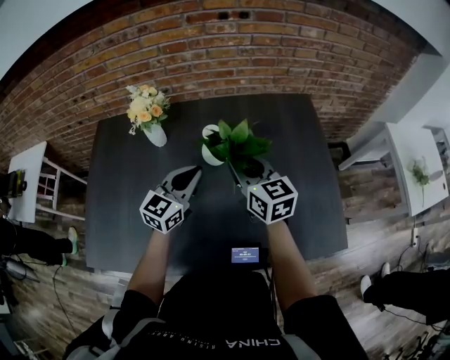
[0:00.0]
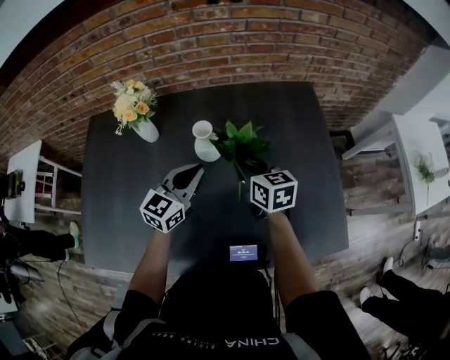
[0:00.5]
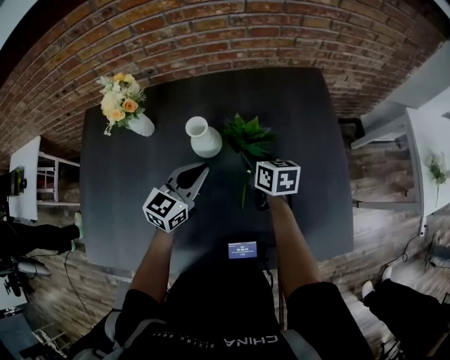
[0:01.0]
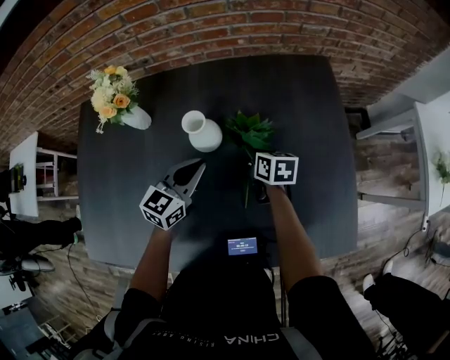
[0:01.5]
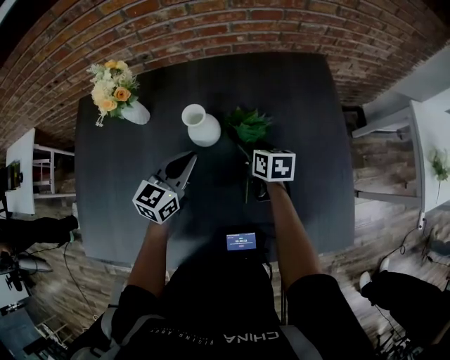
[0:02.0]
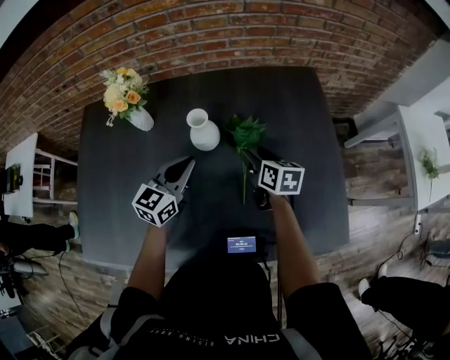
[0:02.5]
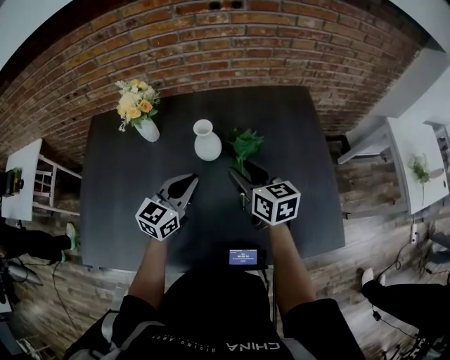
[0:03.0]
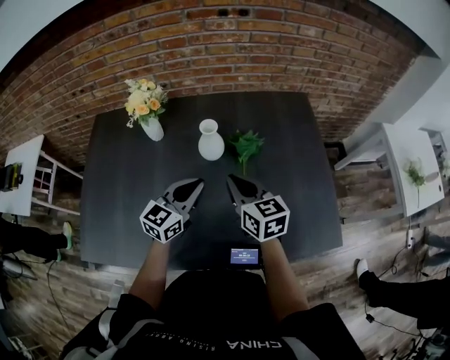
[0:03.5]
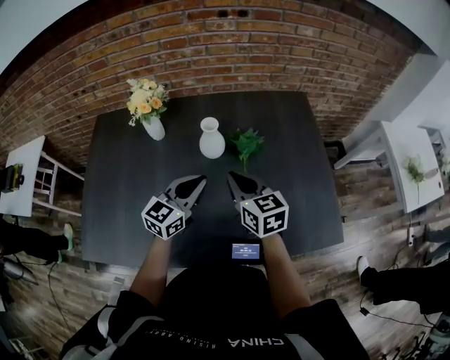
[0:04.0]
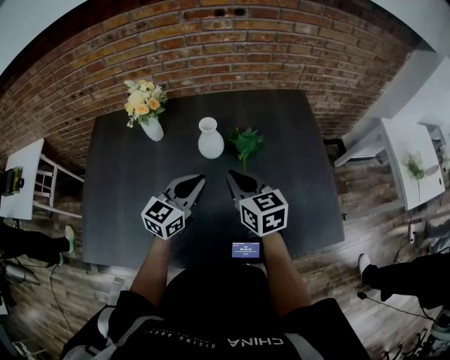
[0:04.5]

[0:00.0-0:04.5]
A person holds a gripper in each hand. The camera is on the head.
0.0 to 2.0 s: The left gripper heads downward and forward, covering roughly 10 cm; the right gripper travels downward by roughly 25 cm, rotates approximately 40 degrees, and opens up.
2.0 to 4.5 s: The right gripper travels upward and backward by roughly 25 cm, changes its angle by approximately 30 degrees, and closes up. The left gripper heads backward and upward, covering roughly 15 cm.

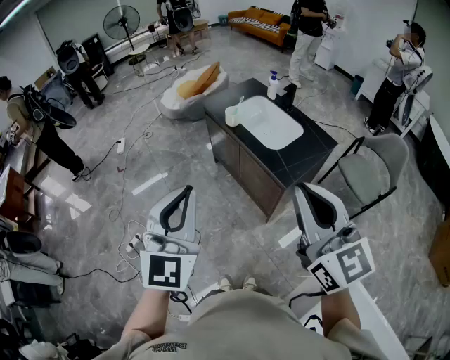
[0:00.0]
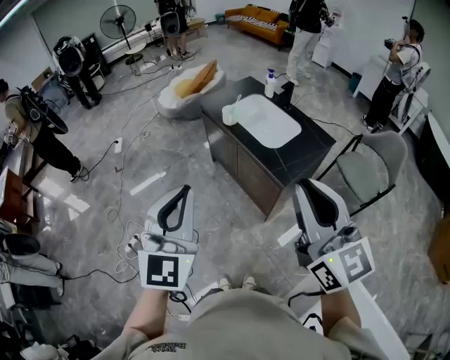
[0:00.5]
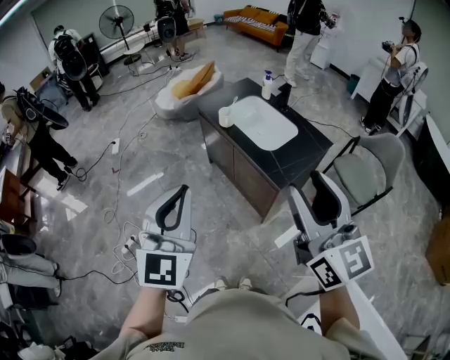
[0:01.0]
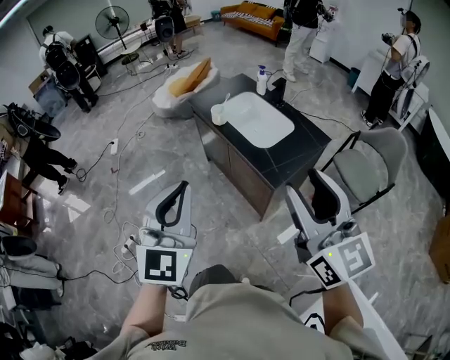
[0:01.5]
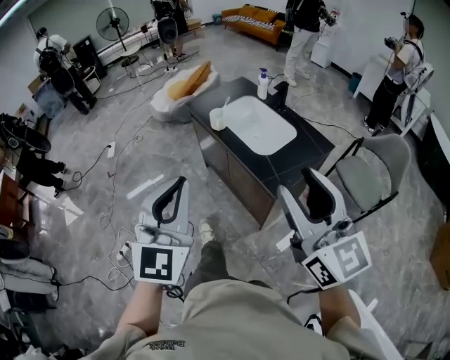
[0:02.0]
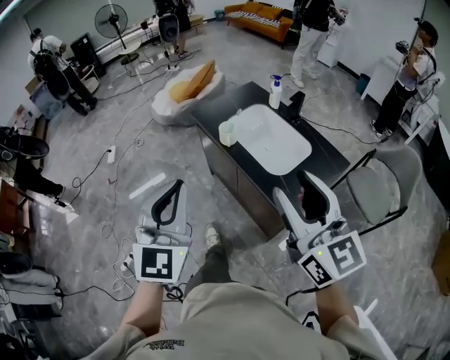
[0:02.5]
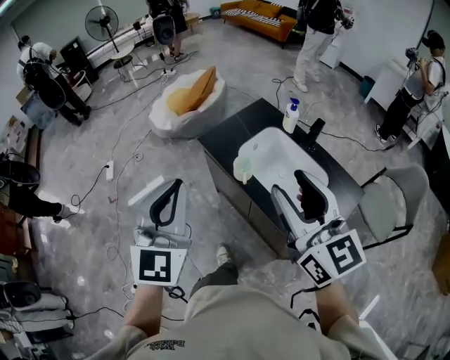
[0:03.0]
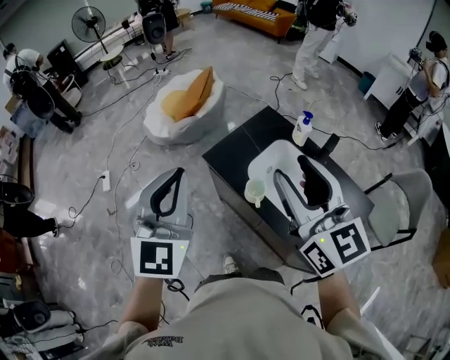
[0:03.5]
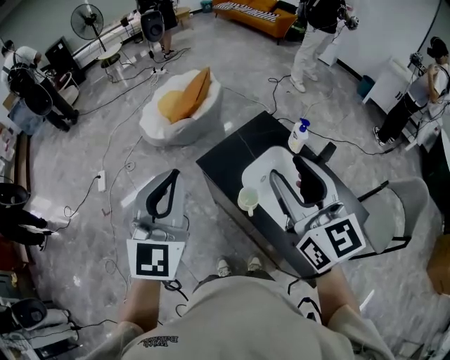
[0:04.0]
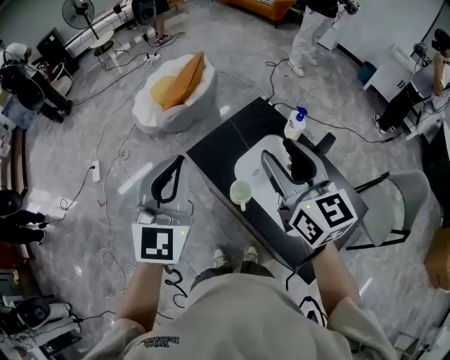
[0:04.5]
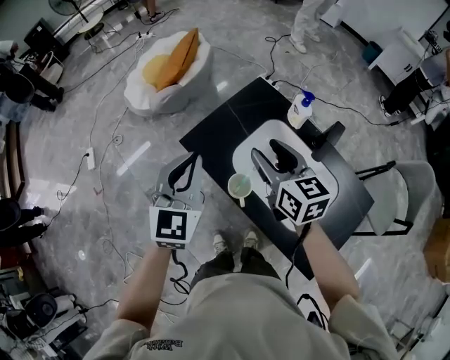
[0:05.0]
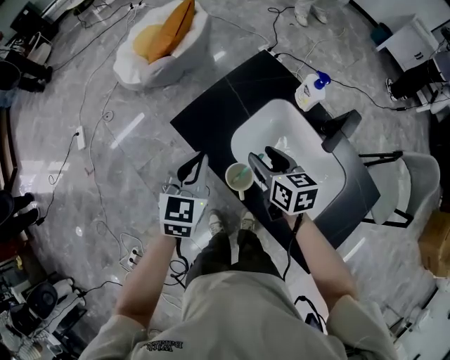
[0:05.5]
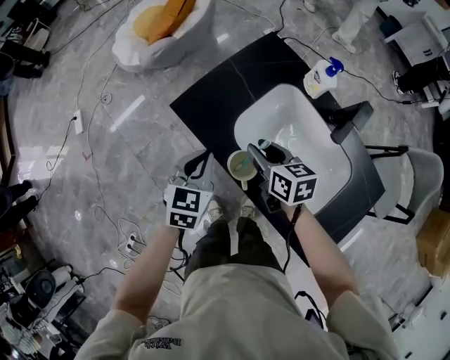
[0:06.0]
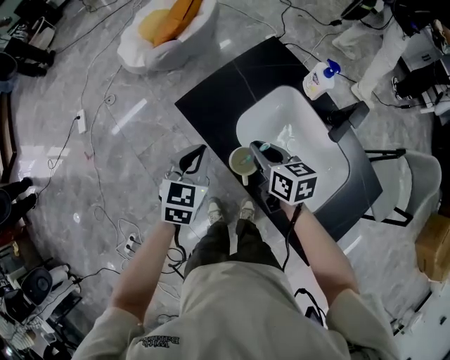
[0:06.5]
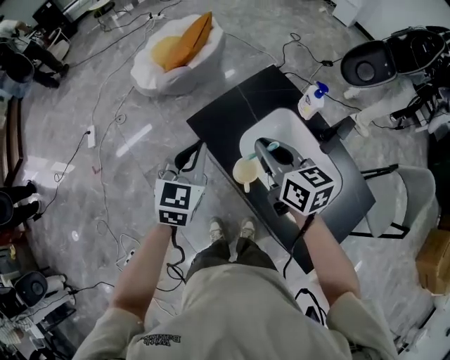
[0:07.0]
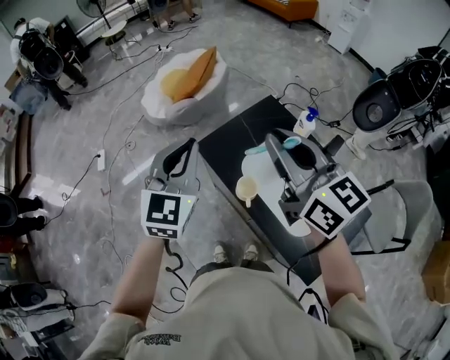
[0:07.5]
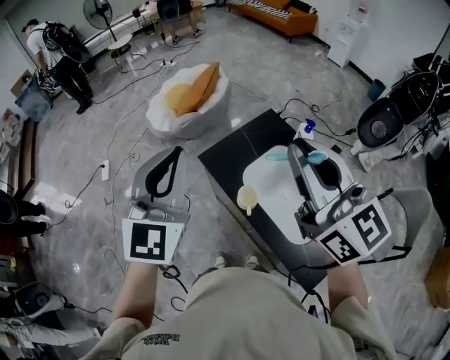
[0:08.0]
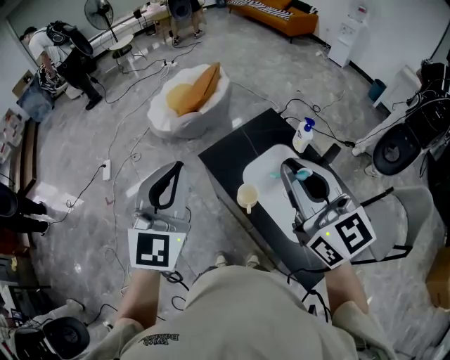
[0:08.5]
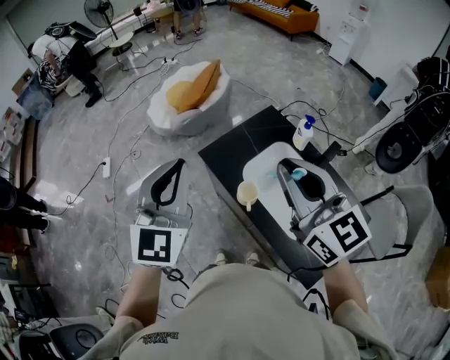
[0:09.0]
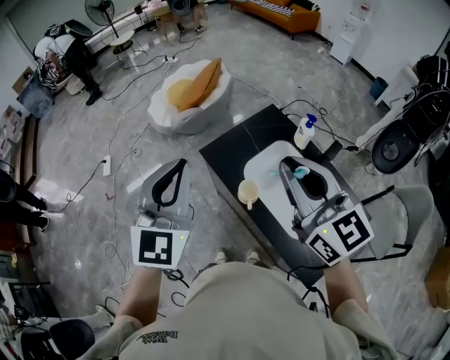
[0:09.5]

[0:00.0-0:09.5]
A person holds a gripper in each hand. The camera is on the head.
0.0 to 2.0 s: Both grippers travel together forward and to the right, roughly 10 cm. The right gripper opens up.
2.0 to 4.0 s: Both grippers are carried forward, about 50 cm.
4.0 to 5.5 s: The grippers both shift downward by some 35 cm. The left gripper turns by roughly 30 degrees. Meanwhile the right gripper points its fingers approximately 30 degrees further downward.
5.5 to 7.5 s: The right gripper heads upward, covering some 35 cm, angles its fingers upward, by roughly 30 degrees, and closes up. Meanwhile the left gripper travels upward by some 25 cm, and swivels some 20 degrees.
7.5 to 9.5 s: The right gripper shifts roughly 5 cm backward, and moves approximately 10 cm upward and comes back, while the left gripper is displaced backward and upward by approximately 10 cm.

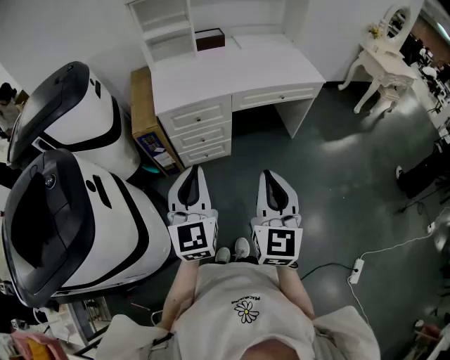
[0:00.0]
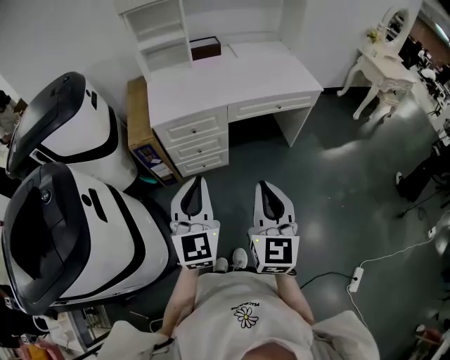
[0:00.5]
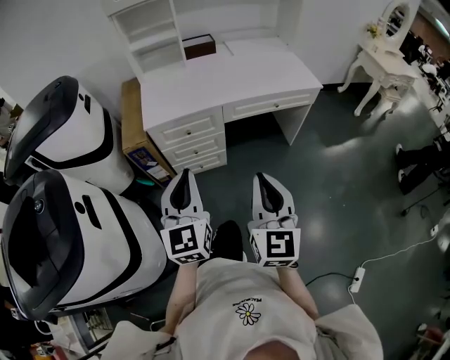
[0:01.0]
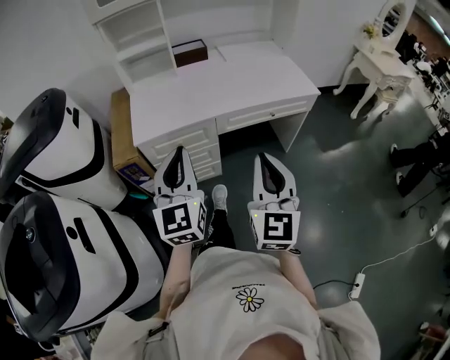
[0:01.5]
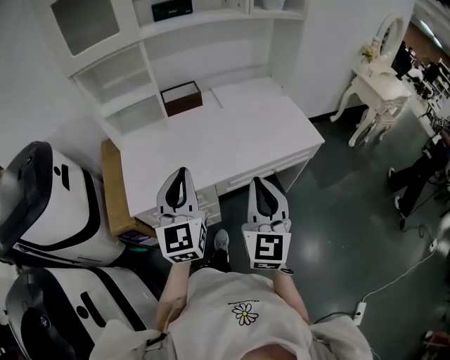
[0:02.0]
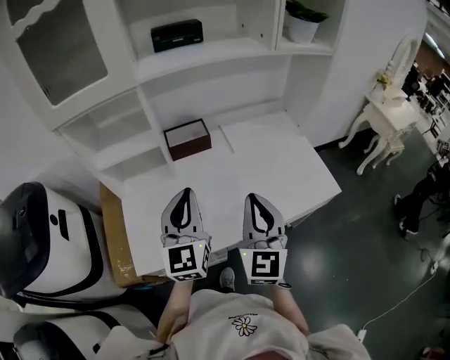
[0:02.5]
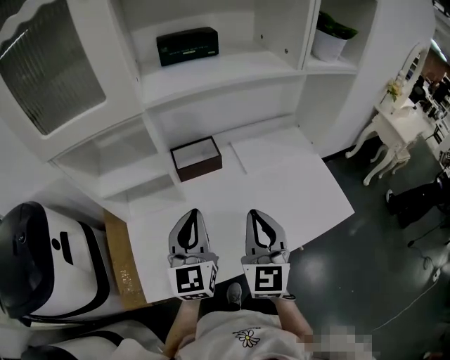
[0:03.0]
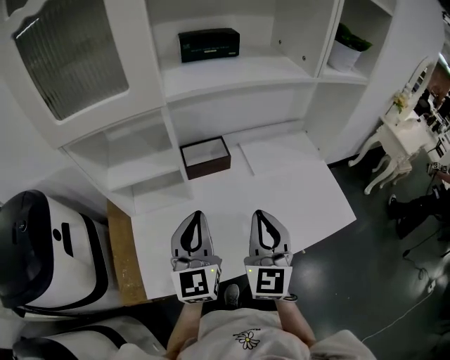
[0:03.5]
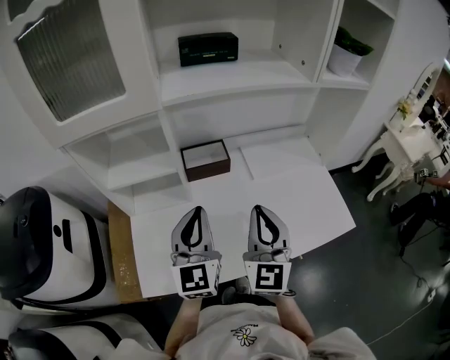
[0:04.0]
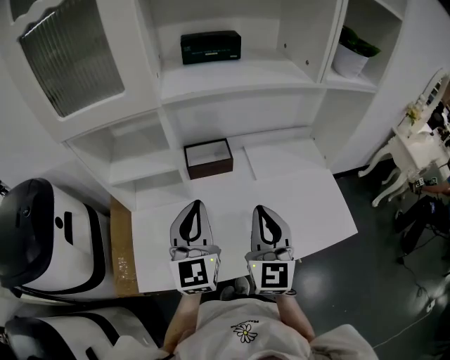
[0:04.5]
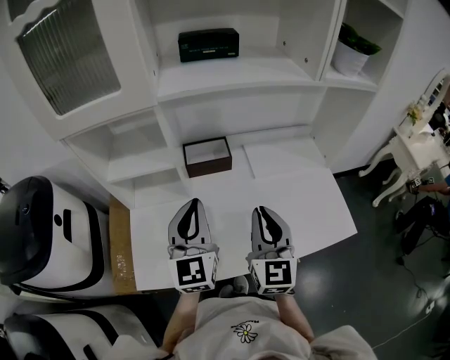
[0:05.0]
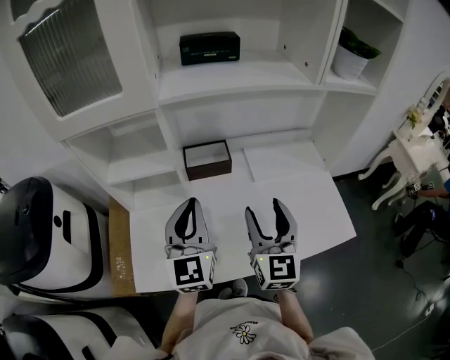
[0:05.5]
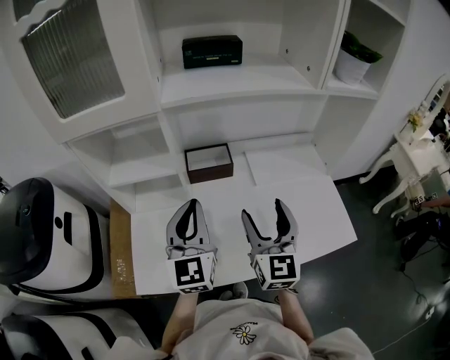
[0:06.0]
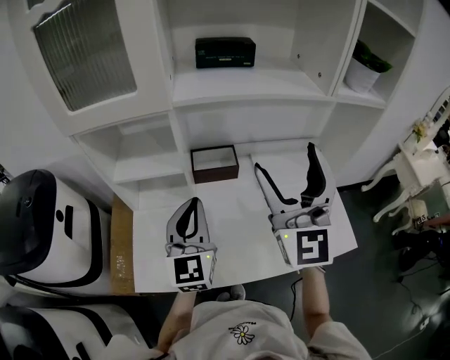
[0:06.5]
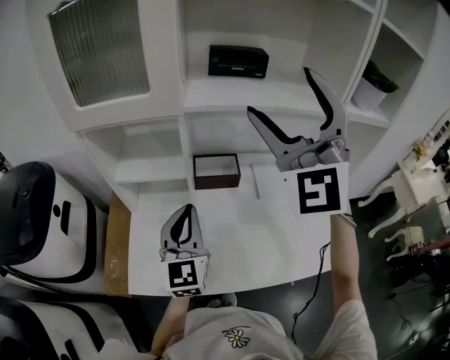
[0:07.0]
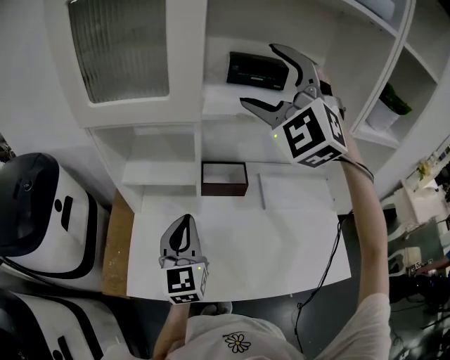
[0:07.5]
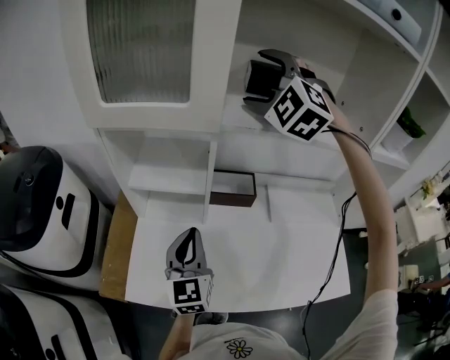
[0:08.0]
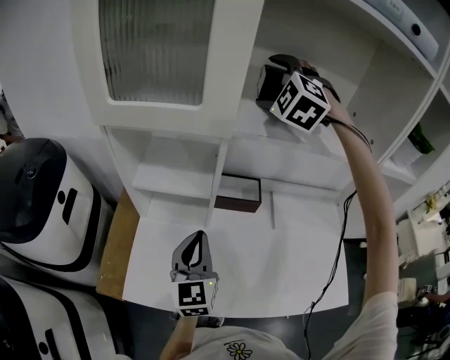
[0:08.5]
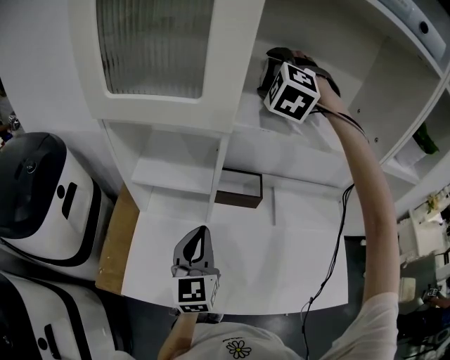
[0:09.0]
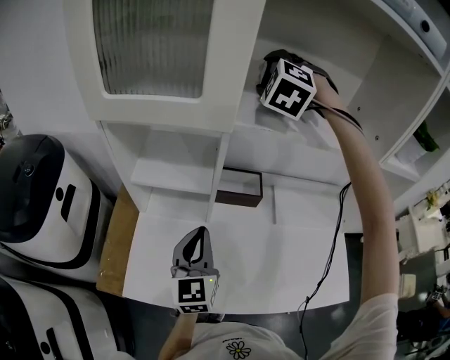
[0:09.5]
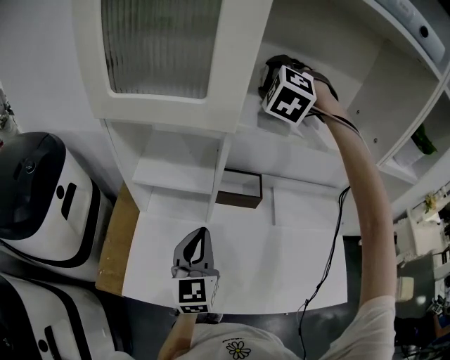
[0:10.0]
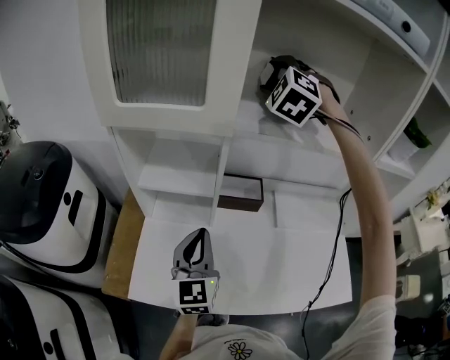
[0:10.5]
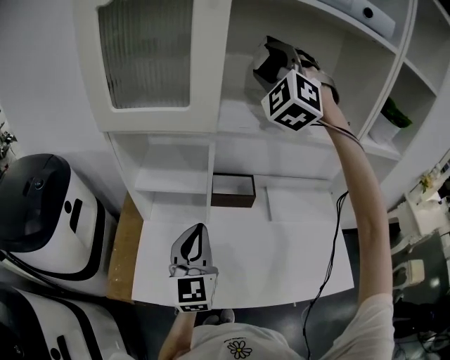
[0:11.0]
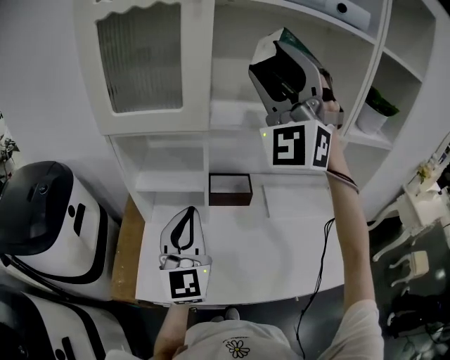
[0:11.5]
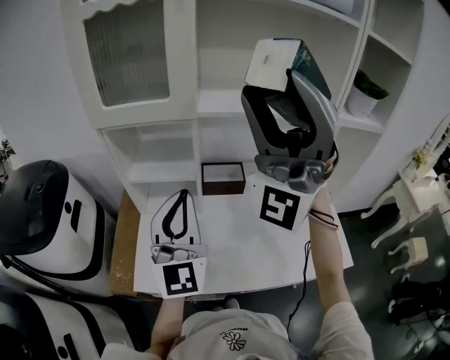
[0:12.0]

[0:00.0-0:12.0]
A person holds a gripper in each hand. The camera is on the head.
0.0 to 2.0 s: The grippers both shift forward by about 40 cm.
2.0 to 4.0 s: The two grippers go approximately 30 cm forward.
4.0 to 6.0 s: The right gripper opens up.
6.0 to 8.0 s: The right gripper heads forward and upward, covering some 40 cm, and rolls counterclockwise, seen from behind, by about 70 degrees. The left gripper heads to the left and downward, covering about 10 cm.
8.0 to 10.0 s: The right gripper heads forward, covering roughly 10 cm, and closes up.
10.0 to 12.0 s: The right gripper goes approximately 40 cm backward, and tilts its fingers approximately 70 degrees upward. The left gripper shifts roughly 20 cm upward and backward, and rotates some 30 degrees.

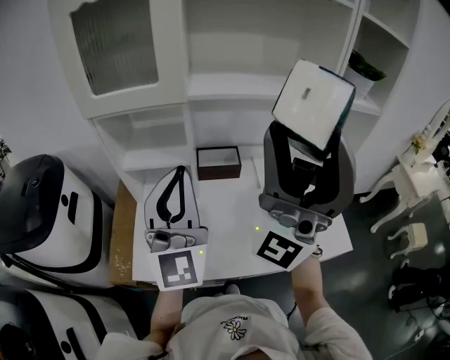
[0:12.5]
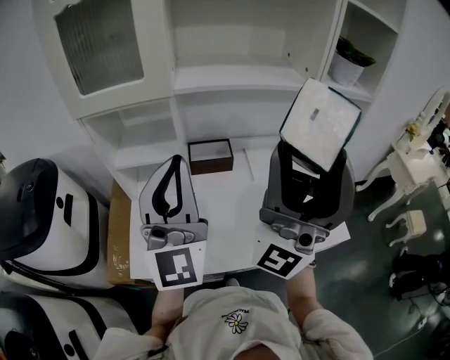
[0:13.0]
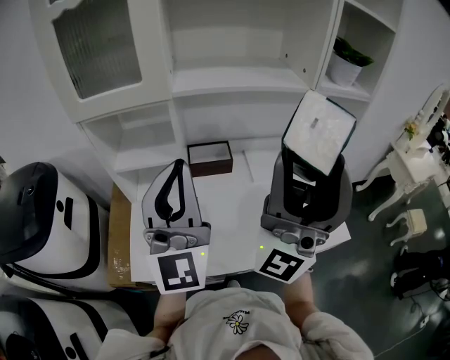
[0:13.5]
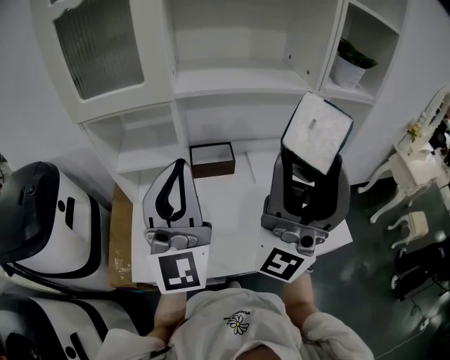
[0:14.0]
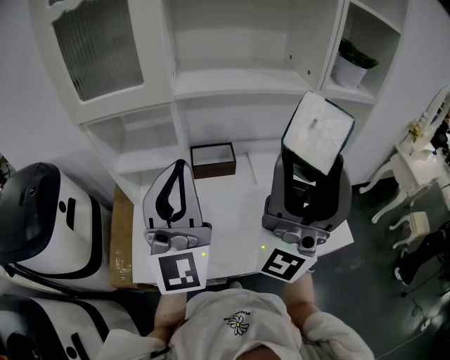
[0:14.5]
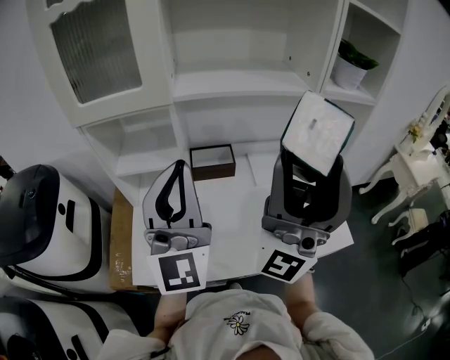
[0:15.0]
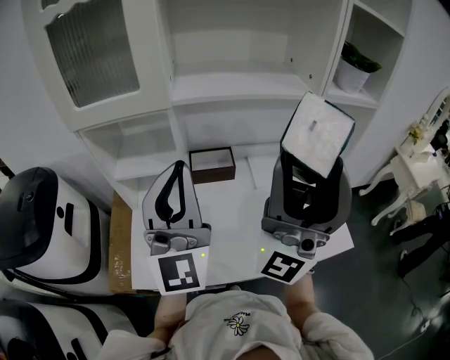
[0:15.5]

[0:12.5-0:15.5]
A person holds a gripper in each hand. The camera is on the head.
12.5 to 14.0 s: The right gripper ends up approximately 5 cm from where it was.
14.0 to 15.5 s: The grippers move only a little.
